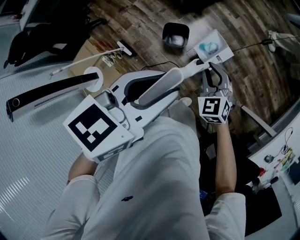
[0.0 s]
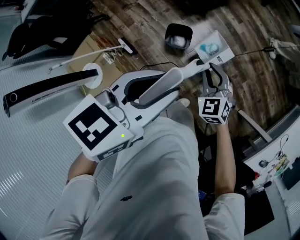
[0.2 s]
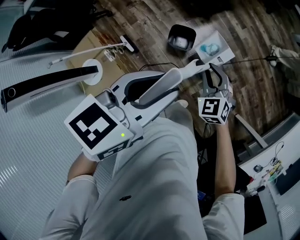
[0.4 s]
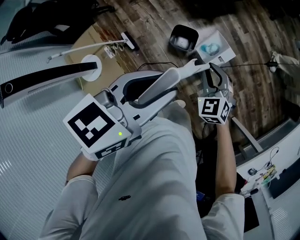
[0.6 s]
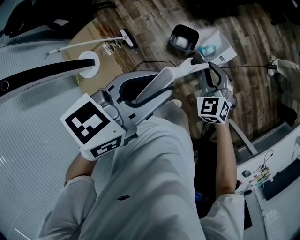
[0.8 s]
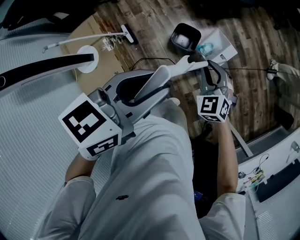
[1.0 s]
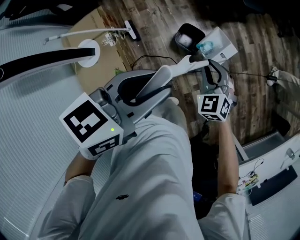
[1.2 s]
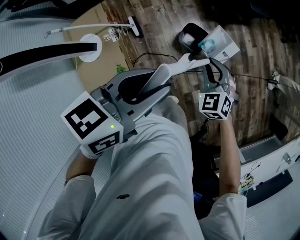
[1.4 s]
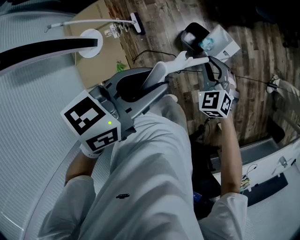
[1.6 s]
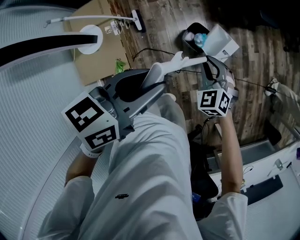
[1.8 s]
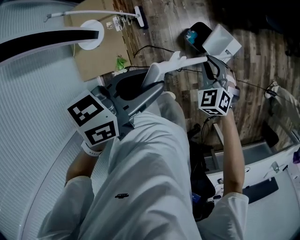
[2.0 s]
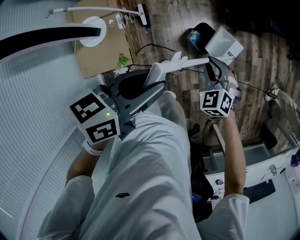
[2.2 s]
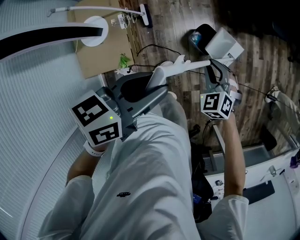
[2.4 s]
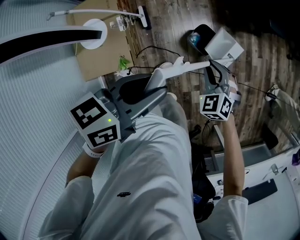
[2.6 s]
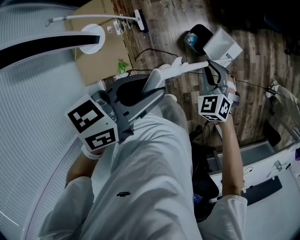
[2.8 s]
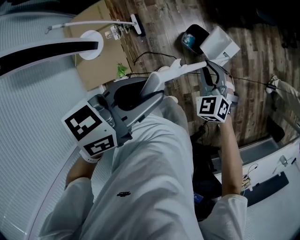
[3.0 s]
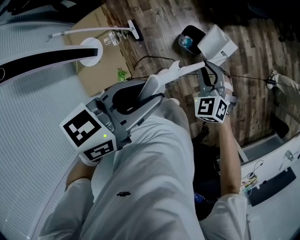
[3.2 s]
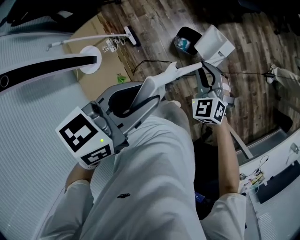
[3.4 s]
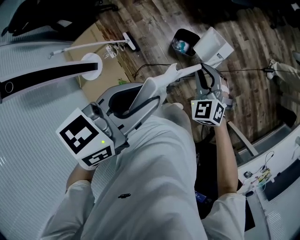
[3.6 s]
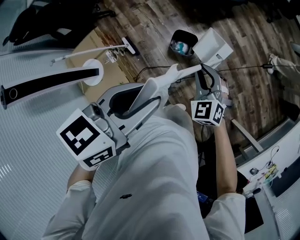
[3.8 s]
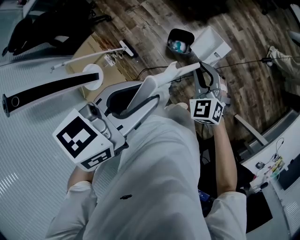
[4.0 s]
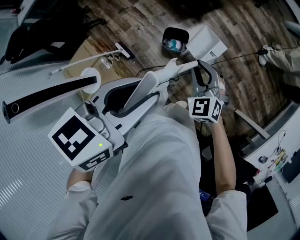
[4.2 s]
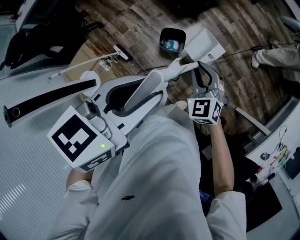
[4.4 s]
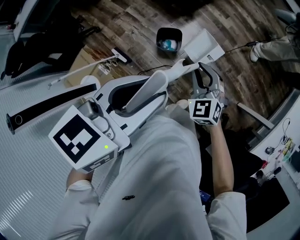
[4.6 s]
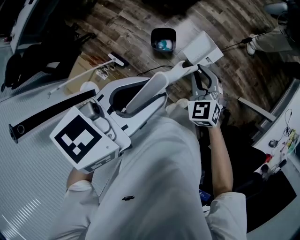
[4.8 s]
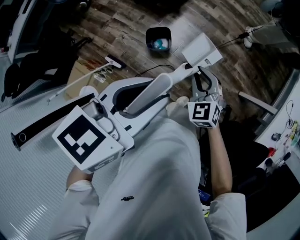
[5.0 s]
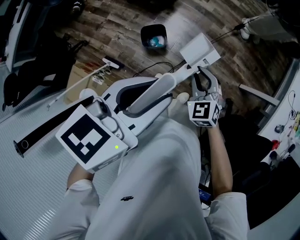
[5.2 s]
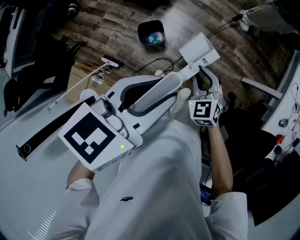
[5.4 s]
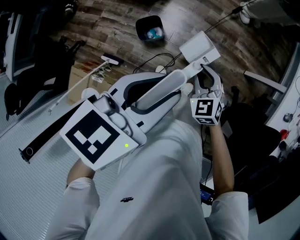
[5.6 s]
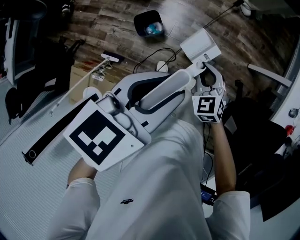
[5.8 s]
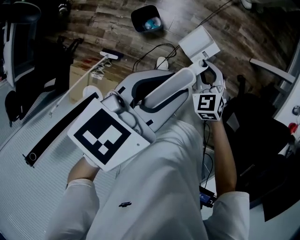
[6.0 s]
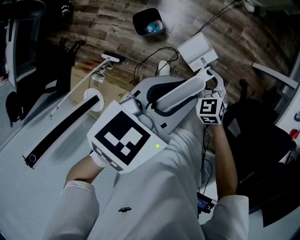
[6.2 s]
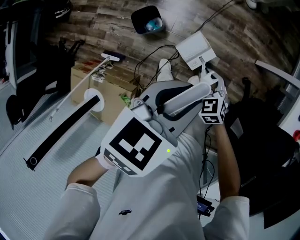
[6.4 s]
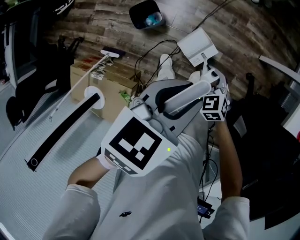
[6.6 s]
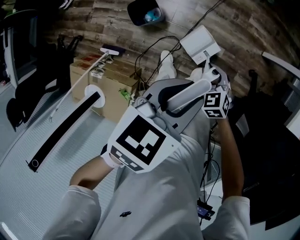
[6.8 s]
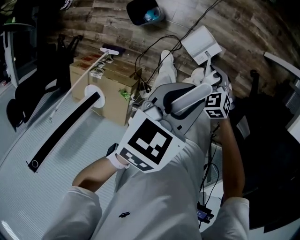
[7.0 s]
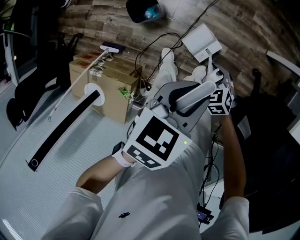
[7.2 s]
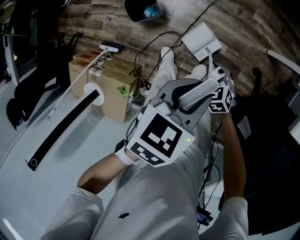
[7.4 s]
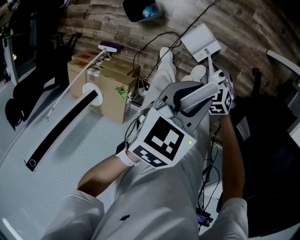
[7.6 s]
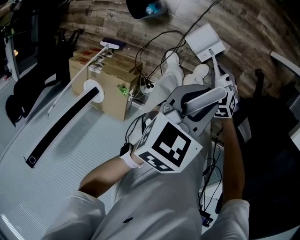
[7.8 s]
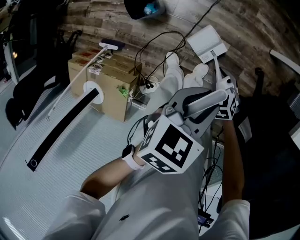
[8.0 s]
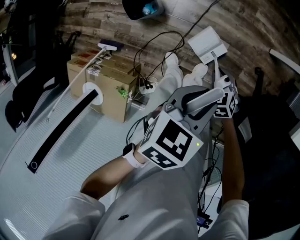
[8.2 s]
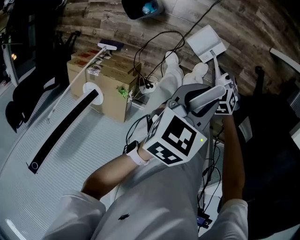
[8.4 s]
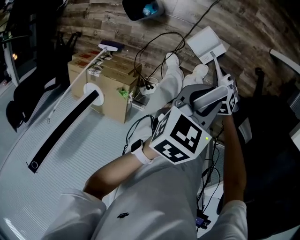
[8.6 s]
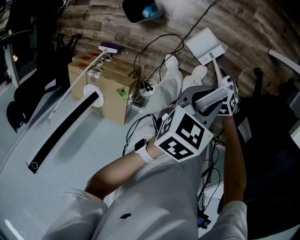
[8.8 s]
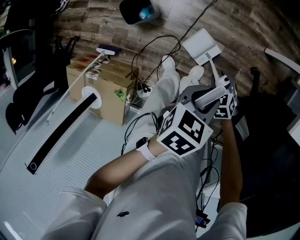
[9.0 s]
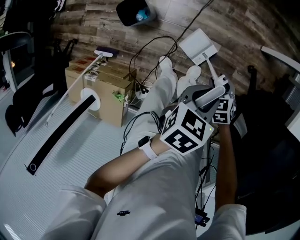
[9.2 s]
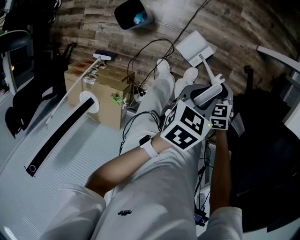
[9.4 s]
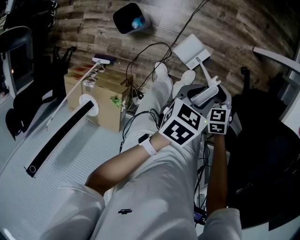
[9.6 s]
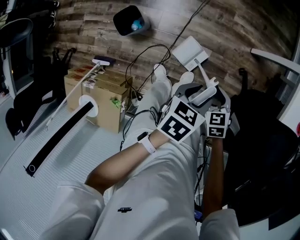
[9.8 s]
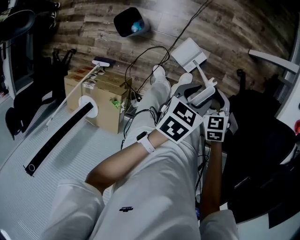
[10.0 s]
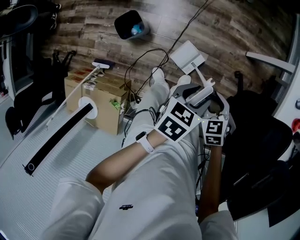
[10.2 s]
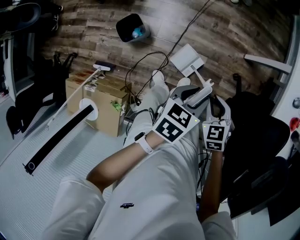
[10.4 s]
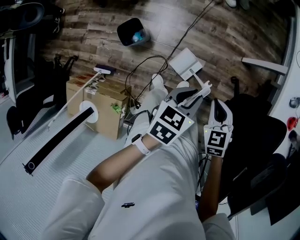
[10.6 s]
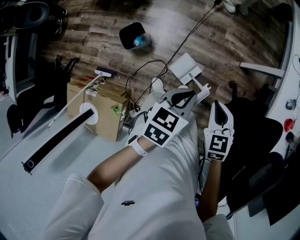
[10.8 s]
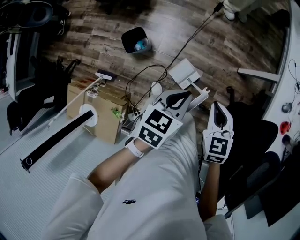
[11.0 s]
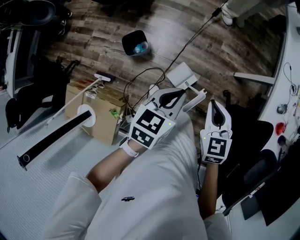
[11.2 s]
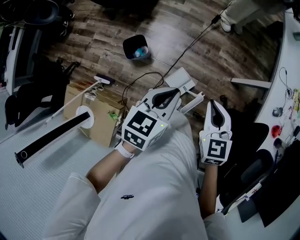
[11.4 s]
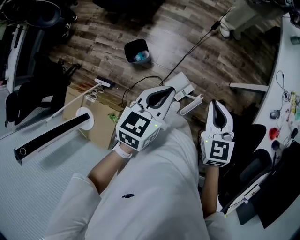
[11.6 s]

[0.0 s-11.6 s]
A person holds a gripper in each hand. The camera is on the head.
0.0 to 1.4 s: Both grippers move to the left, approximately 15 cm. The left gripper changes its angle by roughly 30 degrees. Meanwhile the right gripper rotates roughly 30 degrees.
1.4 to 2.8 s: The grippers both shift to the left by about 5 cm.
2.8 to 4.4 s: Both grippers move to the right and upward, approximately 20 cm. The left gripper swivels approximately 40 degrees. Meanwhile the right gripper rotates roughly 40 degrees.
4.4 to 5.8 s: The grippers both shift to the right and downward by roughly 20 cm. The right gripper swivels some 30 degrees; the left gripper rotates some 30 degrees.
5.8 to 7.2 s: The right gripper shifts roughly 20 cm downward; the left gripper goes some 25 cm downward and to the right.
7.2 to 8.8 s: Both grippers travel together downward and to the right, roughly 10 cm.
8.8 to 10.2 s: The left gripper moves roughly 5 cm; the right gripper moves upward, approximately 20 cm.
10.2 to 11.6 s: The left gripper travels upward and to the left by roughly 25 cm, turns by about 30 degrees, and closes; the right gripper moves upward, roughly 25 cm, turns by approximately 30 degrees, and closes its fingers.

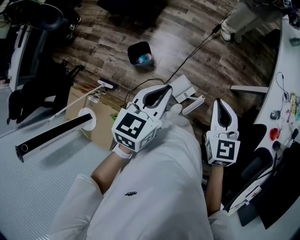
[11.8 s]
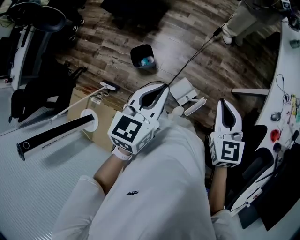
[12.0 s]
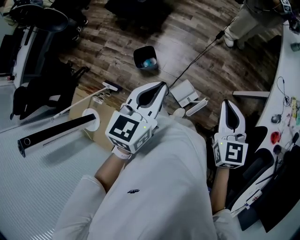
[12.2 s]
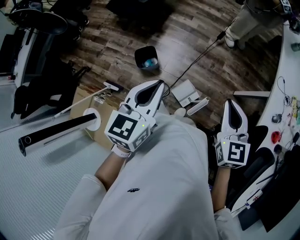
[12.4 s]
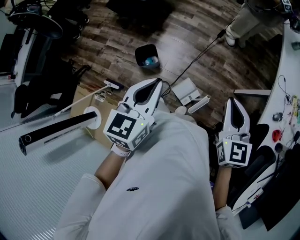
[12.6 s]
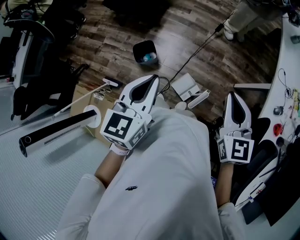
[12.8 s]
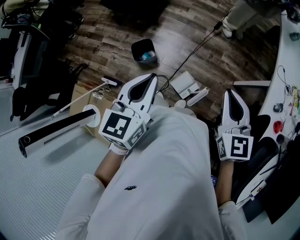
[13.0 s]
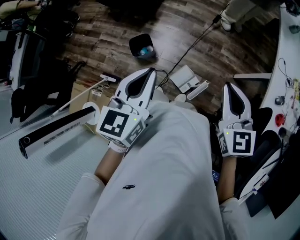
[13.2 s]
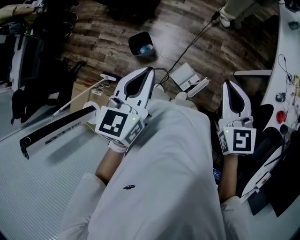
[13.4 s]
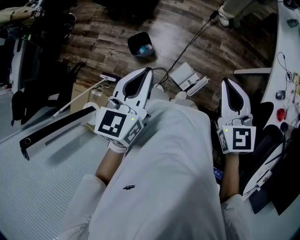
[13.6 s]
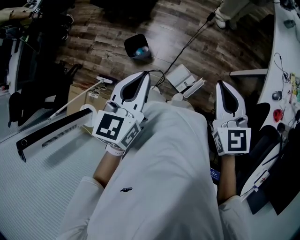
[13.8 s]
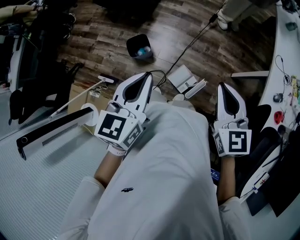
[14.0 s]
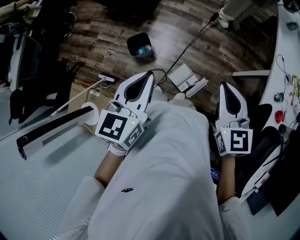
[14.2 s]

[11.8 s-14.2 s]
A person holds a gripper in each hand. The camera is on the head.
11.8 to 13.0 s: The left gripper travels upward and to the left by some 10 cm. Meanwhile the right gripper travels upward by about 5 cm.
13.0 to 14.2 s: The grippers stay close to where they were, moving slightly.

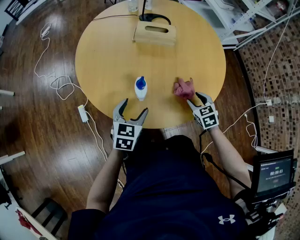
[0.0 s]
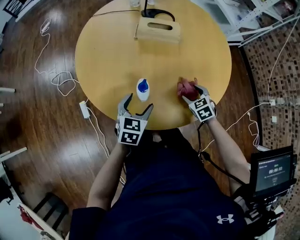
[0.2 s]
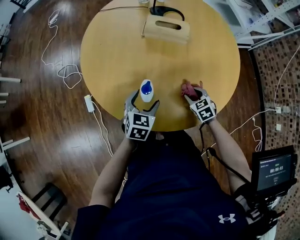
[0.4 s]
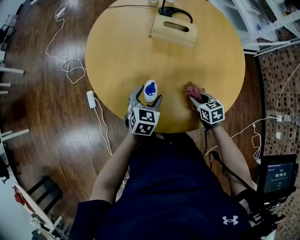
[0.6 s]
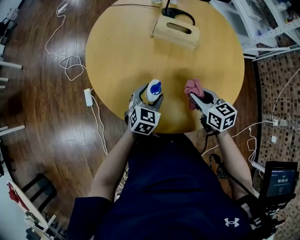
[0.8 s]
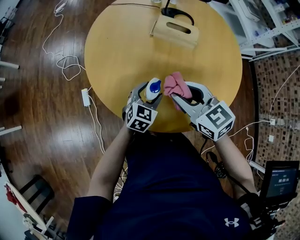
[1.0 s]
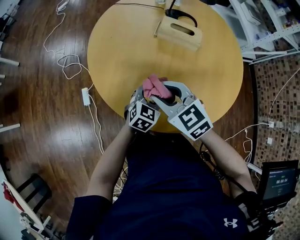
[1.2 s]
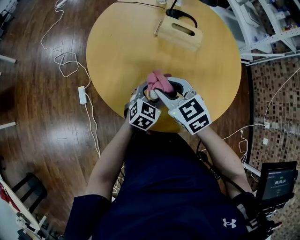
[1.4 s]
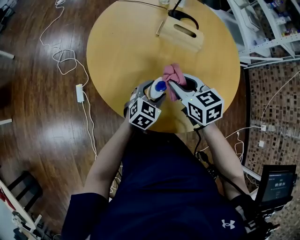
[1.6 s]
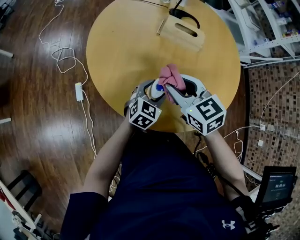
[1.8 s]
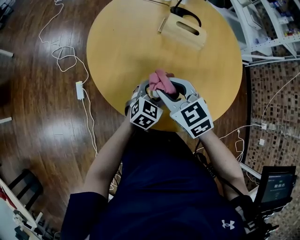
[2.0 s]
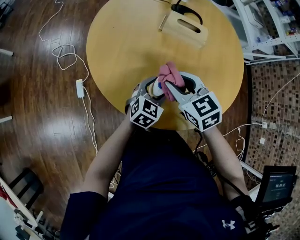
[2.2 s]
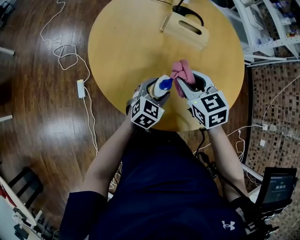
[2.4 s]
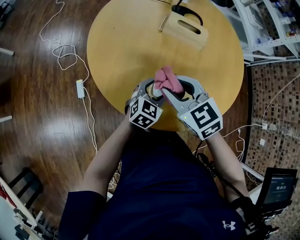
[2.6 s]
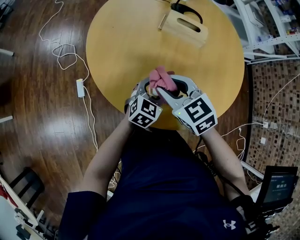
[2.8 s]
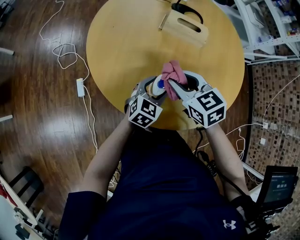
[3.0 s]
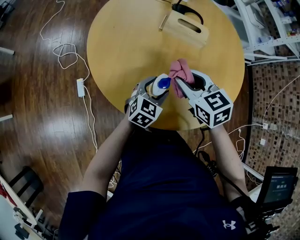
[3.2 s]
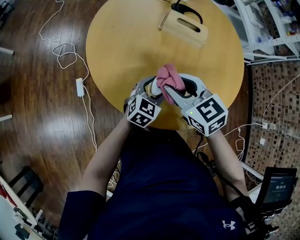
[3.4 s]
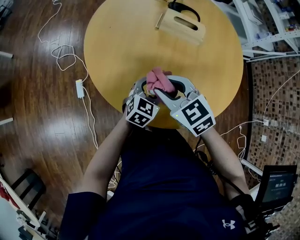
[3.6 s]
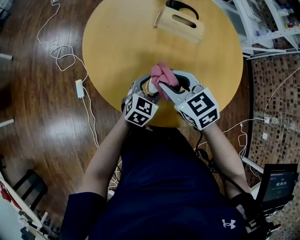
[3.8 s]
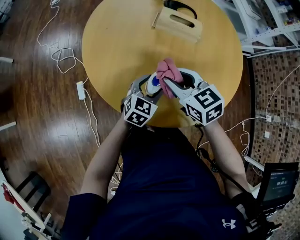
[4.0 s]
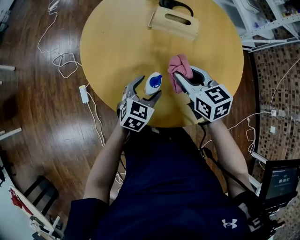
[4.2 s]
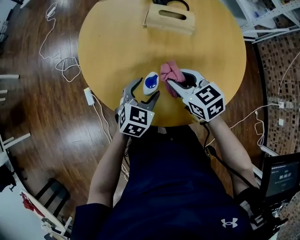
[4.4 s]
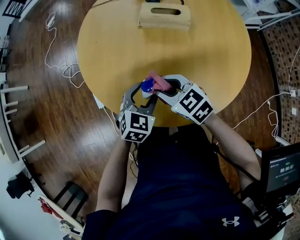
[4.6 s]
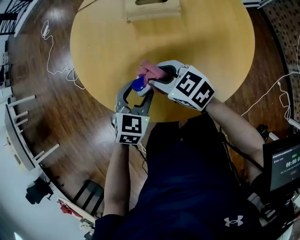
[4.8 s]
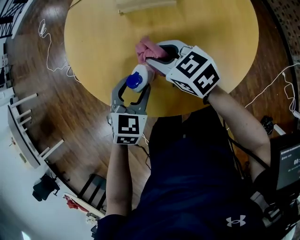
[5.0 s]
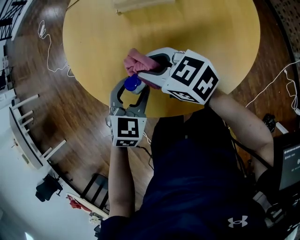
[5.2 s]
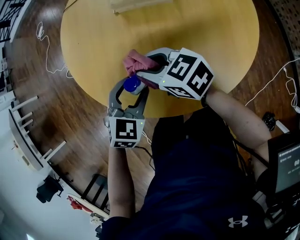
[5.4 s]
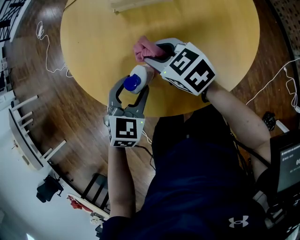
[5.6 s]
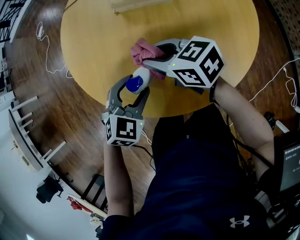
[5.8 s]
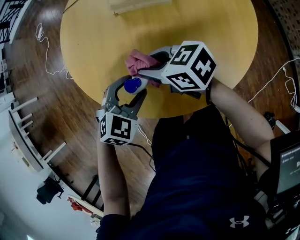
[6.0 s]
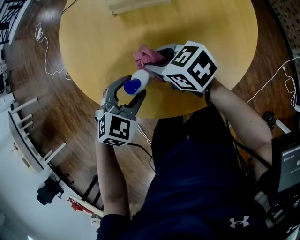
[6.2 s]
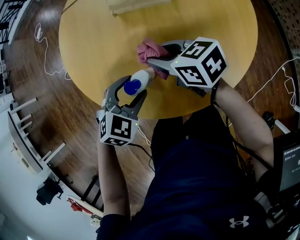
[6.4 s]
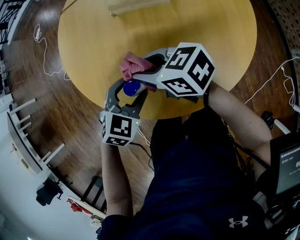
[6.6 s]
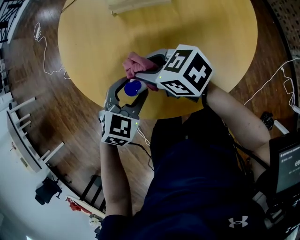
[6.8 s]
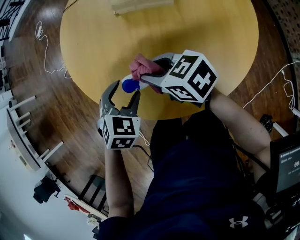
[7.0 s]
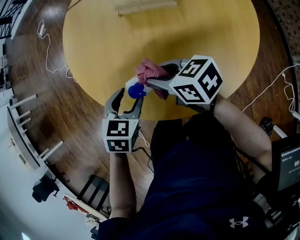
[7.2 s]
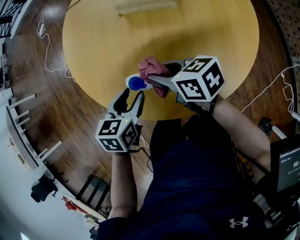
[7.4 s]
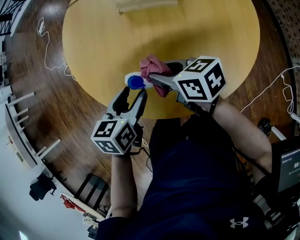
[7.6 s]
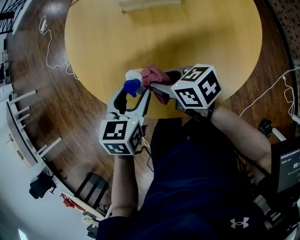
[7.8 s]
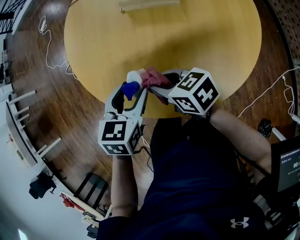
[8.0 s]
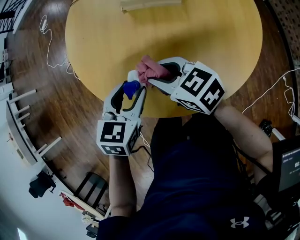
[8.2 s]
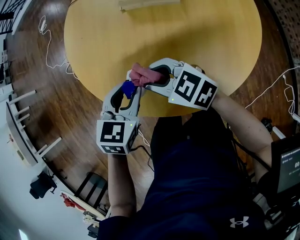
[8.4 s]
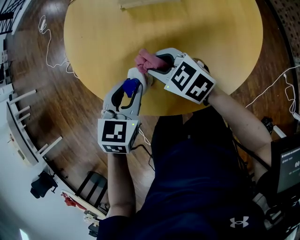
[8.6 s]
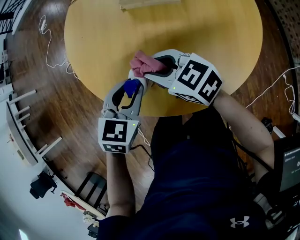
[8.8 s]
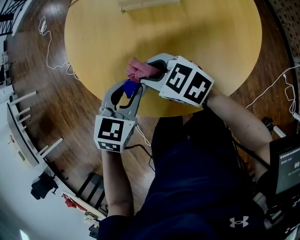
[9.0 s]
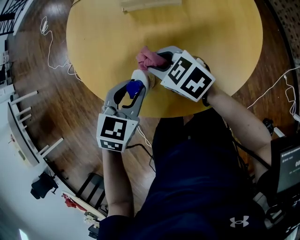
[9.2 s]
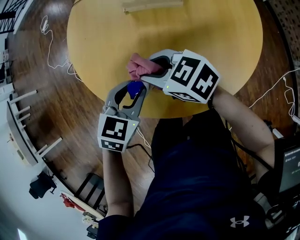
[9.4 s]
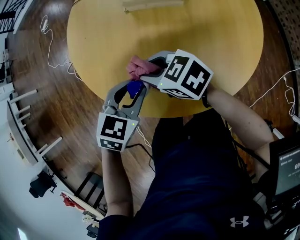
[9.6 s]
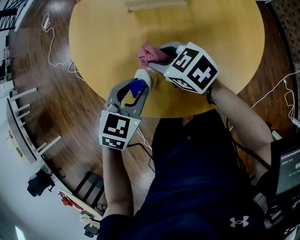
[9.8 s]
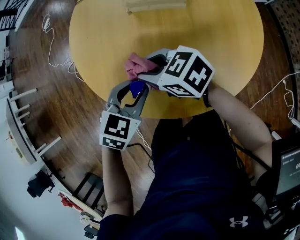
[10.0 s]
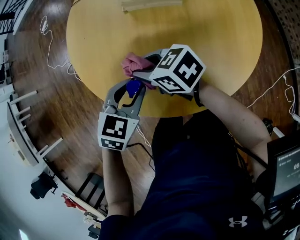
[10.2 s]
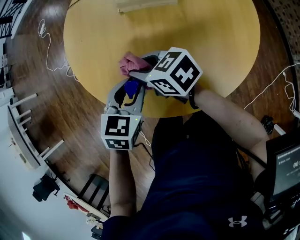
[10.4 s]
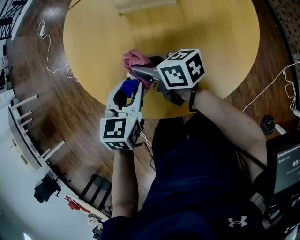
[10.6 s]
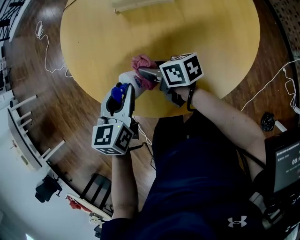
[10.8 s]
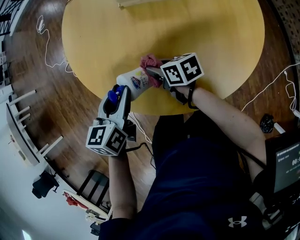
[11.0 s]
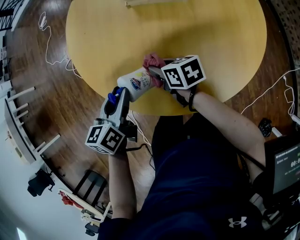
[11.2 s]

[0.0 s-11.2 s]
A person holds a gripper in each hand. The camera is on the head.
0.0 to 1.6 s: The left gripper moves forward, to the right and downward, approximately 10 cm. Meanwhile the right gripper heads to the left, upward and forward, covering roughly 25 cm, and turns by approximately 30 degrees.
1.6 to 3.2 s: The right gripper swings left and right, about 5 cm each way, with 3 reversals.
3.2 to 4.8 s: The right gripper moves left and right over about 10 cm, changing direction 2 times. Meanwhile the left gripper ends up about 5 cm from where it was.
4.8 to 6.4 s: The left gripper swivels approximately 20 degrees.
6.4 to 8.0 s: The right gripper is displaced backward by about 5 cm; the left gripper rotates around the line of its fingers by about 40 degrees, counterclockwise from behind.
8.0 to 9.6 s: The left gripper swivels about 20 degrees; the right gripper goes roughly 5 cm forward, and swivels roughly 20 degrees.
9.6 to 11.2 s: The left gripper goes some 5 cm to the left, and twists roughly 40 degrees counterclockwise, seen from behind. The right gripper heads downward, covering approximately 10 cm, and rotates some 40 degrees.
